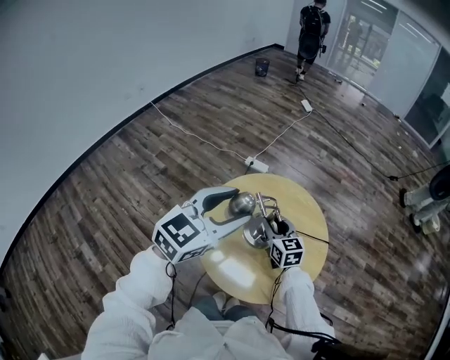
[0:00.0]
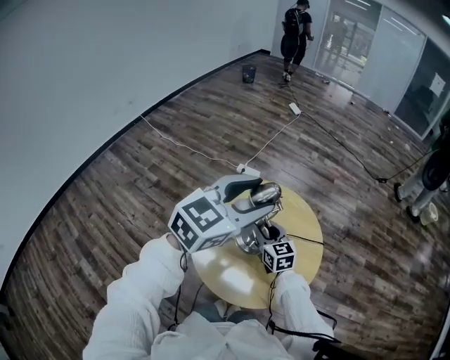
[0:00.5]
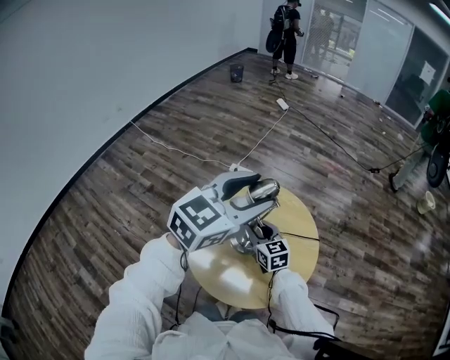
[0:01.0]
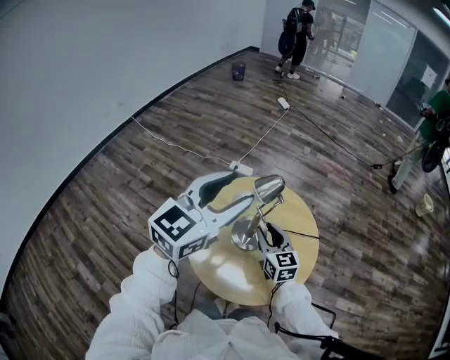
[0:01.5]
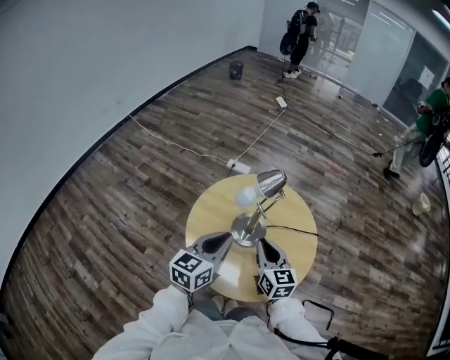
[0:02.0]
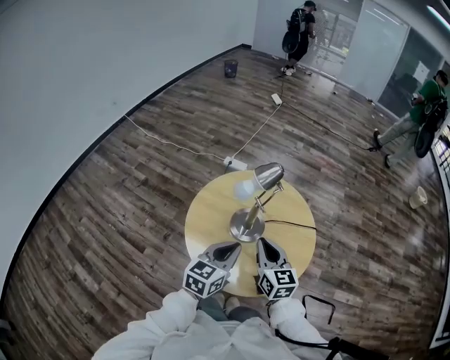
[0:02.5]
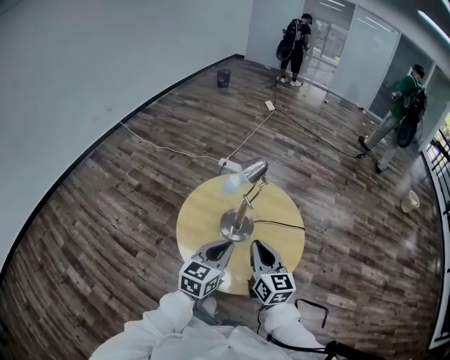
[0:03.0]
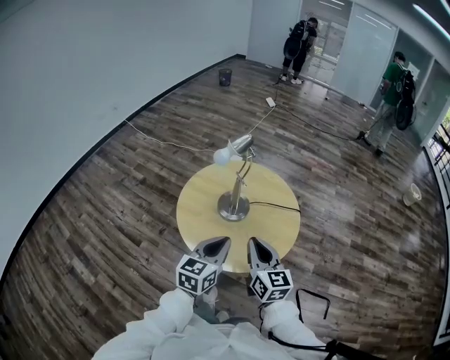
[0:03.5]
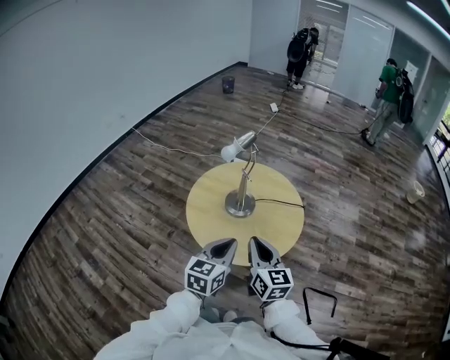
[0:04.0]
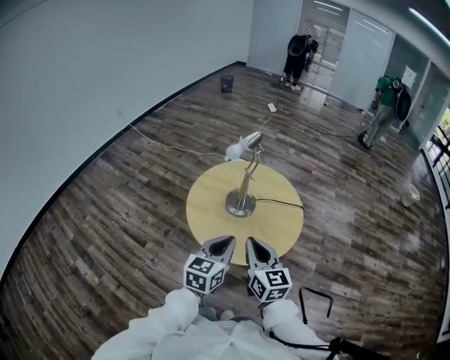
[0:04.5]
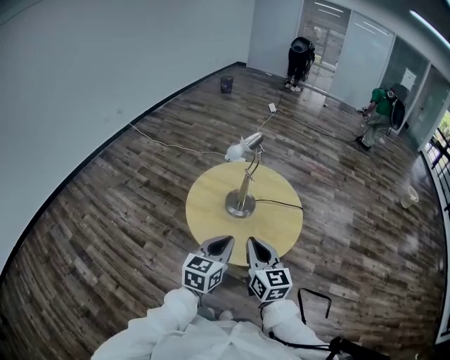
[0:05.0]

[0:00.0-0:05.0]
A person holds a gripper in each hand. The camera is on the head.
0:00.0 to 0:02.5: The right gripper is displaced backward by approximately 10 cm, and closes up, while the left gripper is displaced downward by approximately 15 cm, changes its angle by approximately 20 degrees, and closes up.
0:02.5 to 0:05.0: Both grippers travel together backward, approximately 20 cm.

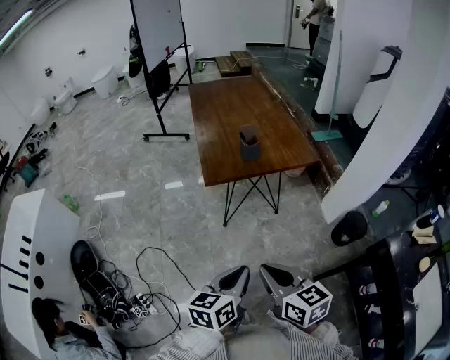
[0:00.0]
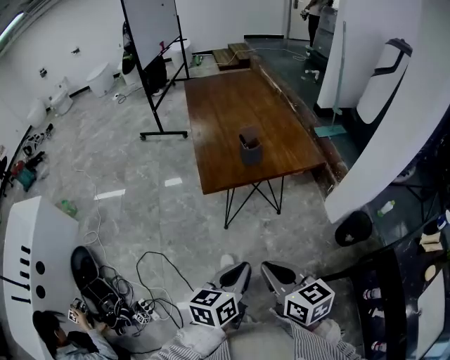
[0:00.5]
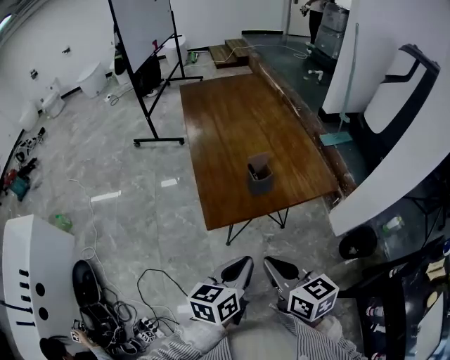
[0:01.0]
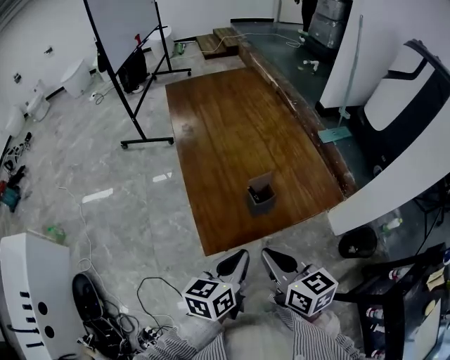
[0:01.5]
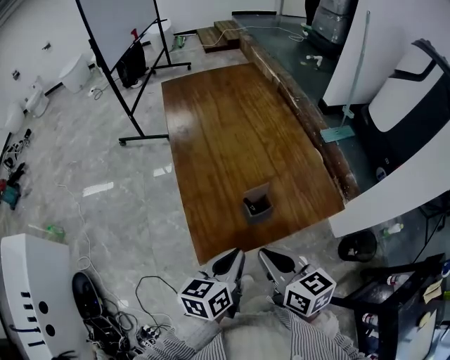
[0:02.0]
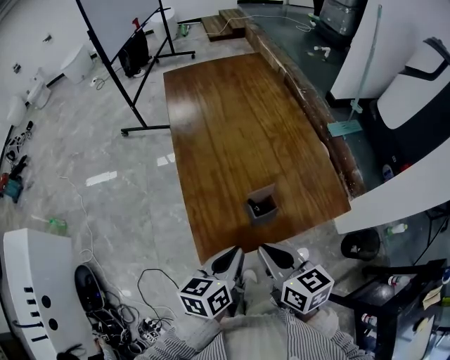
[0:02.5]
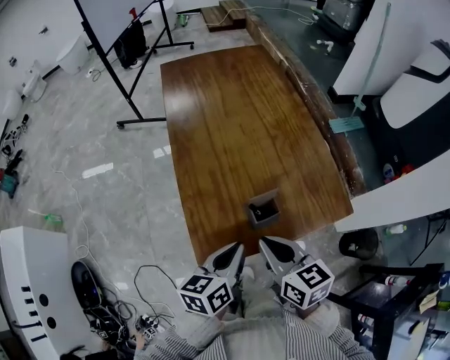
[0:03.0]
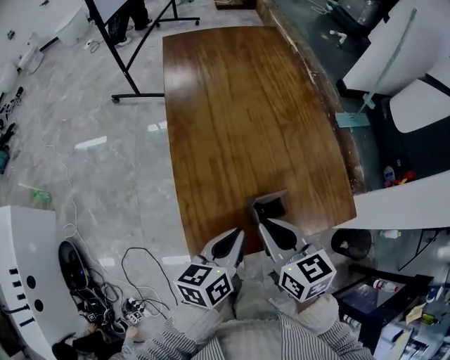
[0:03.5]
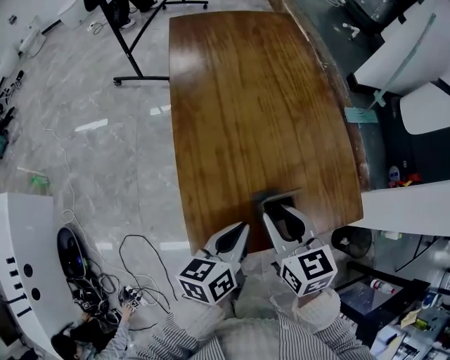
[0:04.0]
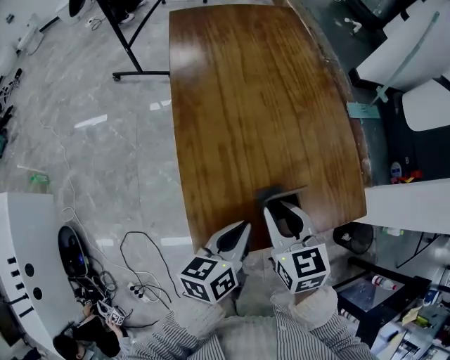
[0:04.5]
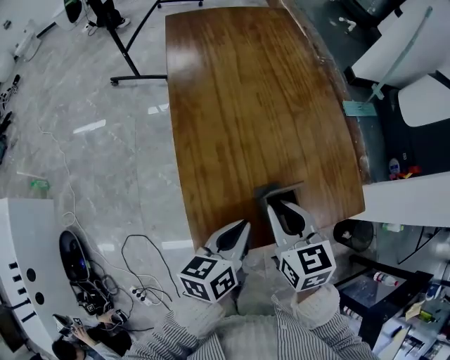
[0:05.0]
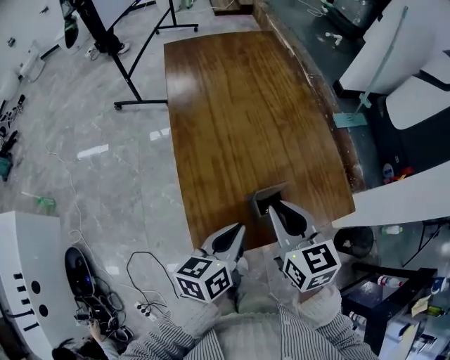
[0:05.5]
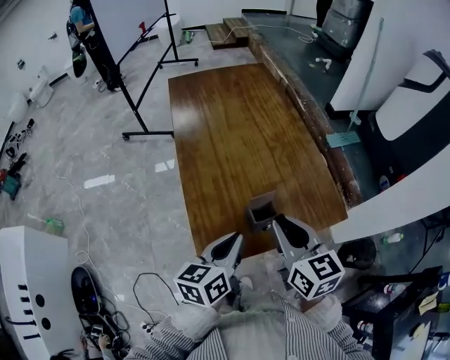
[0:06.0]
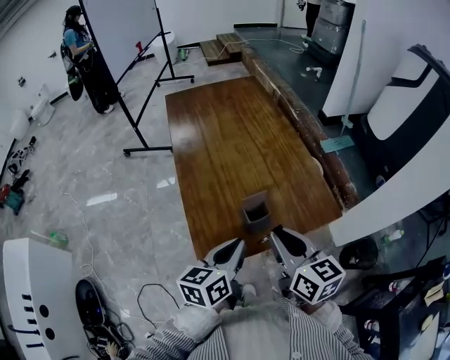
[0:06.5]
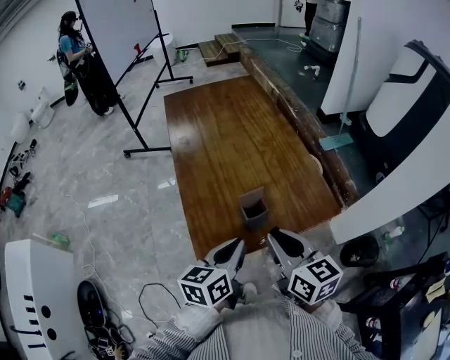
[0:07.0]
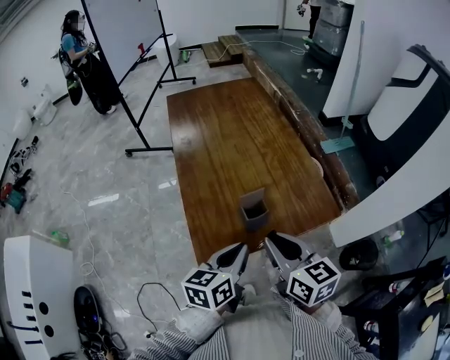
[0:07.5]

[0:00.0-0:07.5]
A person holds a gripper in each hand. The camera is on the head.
0:00.0 to 0:02.0: The pair of grippers is taken forward, approximately 40 cm.
0:02.0 to 0:04.0: The two grippers go approximately 15 cm forward and downward. The right gripper opens its fingers.
0:04.0 to 0:05.5: The right gripper heads upward, covering roughly 5 cm.
0:05.5 to 0:07.5: The grippers both shift backward by roughly 10 cm.

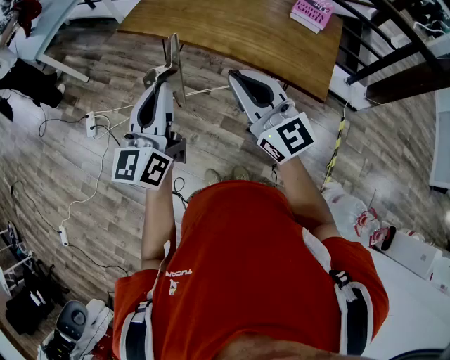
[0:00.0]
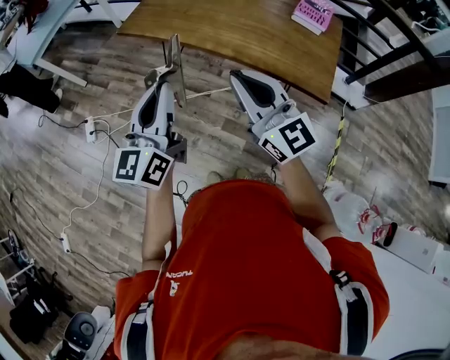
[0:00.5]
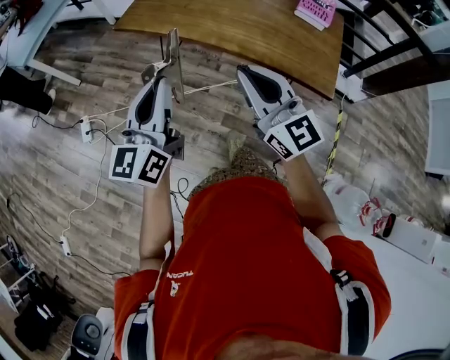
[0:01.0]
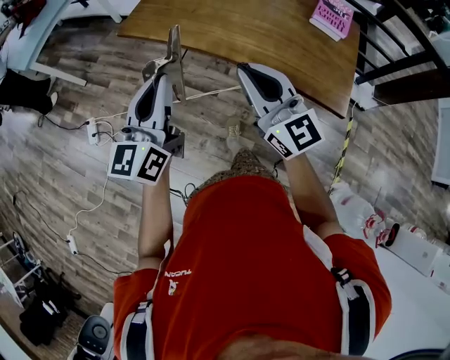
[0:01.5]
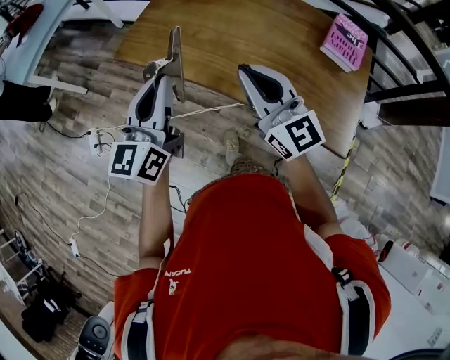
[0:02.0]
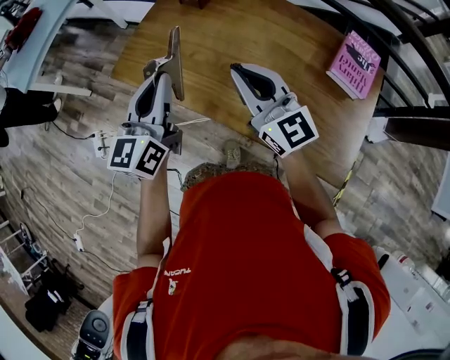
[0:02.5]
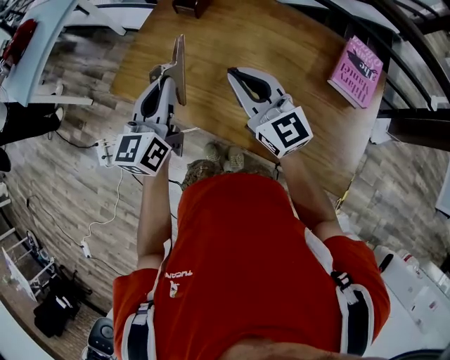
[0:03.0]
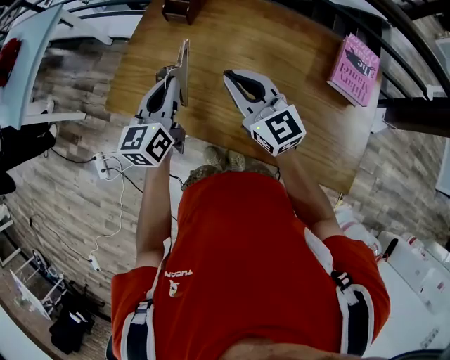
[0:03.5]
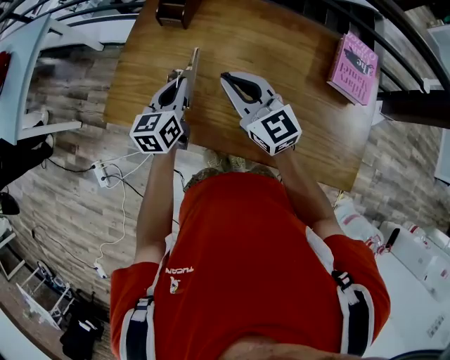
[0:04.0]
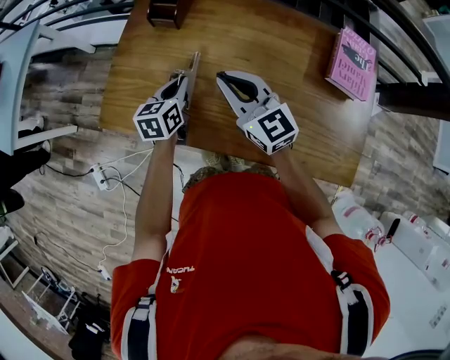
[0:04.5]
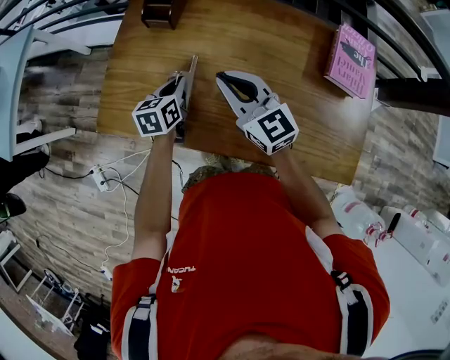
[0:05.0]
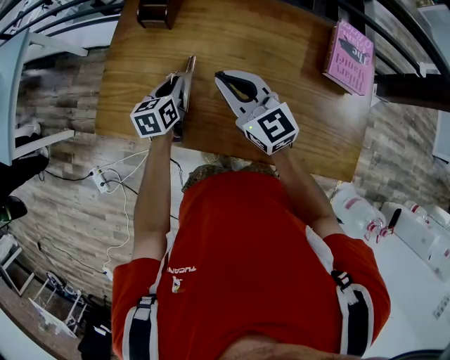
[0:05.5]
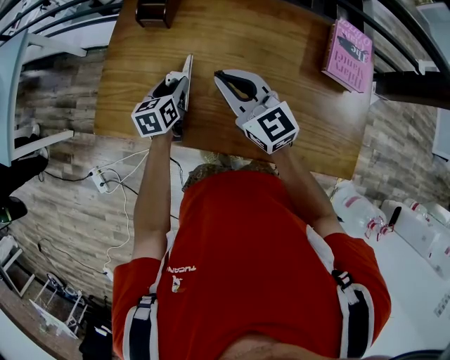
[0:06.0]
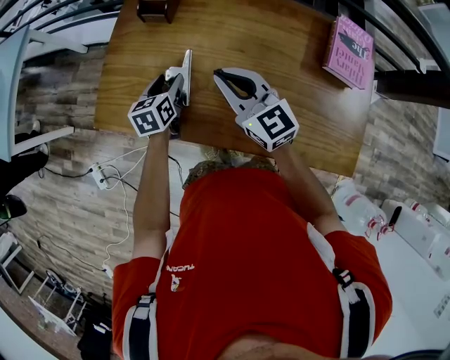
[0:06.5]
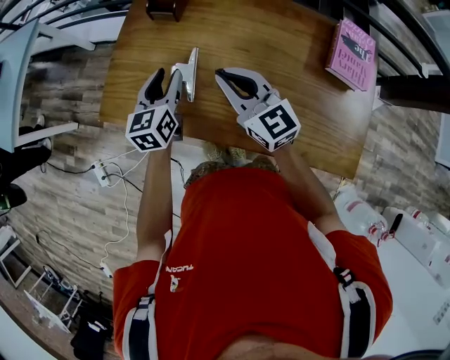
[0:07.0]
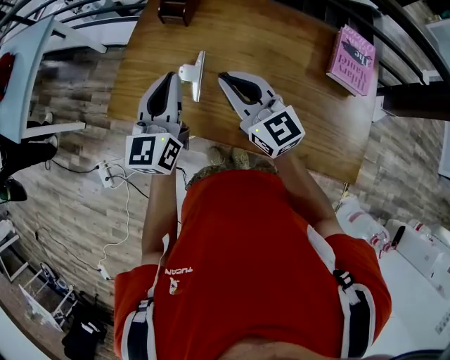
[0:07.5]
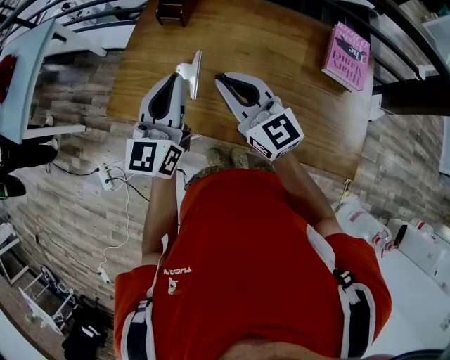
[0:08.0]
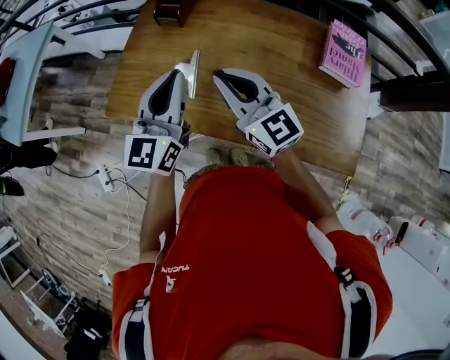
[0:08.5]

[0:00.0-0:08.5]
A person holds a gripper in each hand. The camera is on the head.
0:00.0 to 0:02.0: Both grippers travel together forward, some 25 cm.
0:02.0 to 0:04.0: The left gripper is displaced forward and downward by about 30 cm, and rotates some 30 degrees. The right gripper shifts some 25 cm forward.
0:04.0 to 0:06.5: The left gripper shifts roughly 10 cm downward, and opens up.
0:06.5 to 0:08.5: The right gripper heads upward and backward, covering about 10 cm. The left gripper moves upward and backward, some 25 cm, tips its fingers upward by some 40 degrees, and closes its fingers.

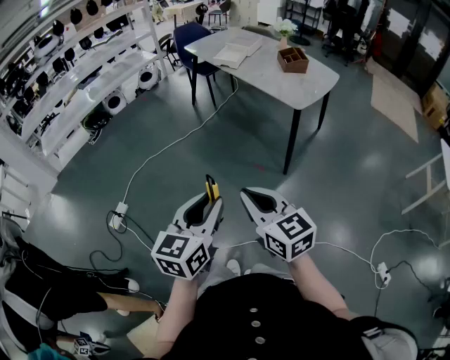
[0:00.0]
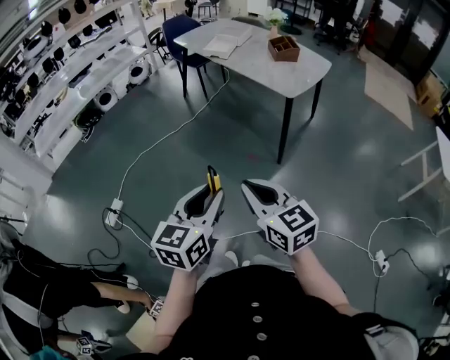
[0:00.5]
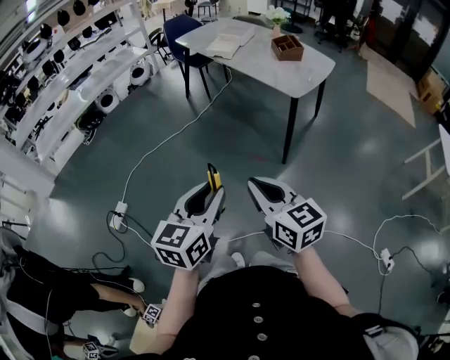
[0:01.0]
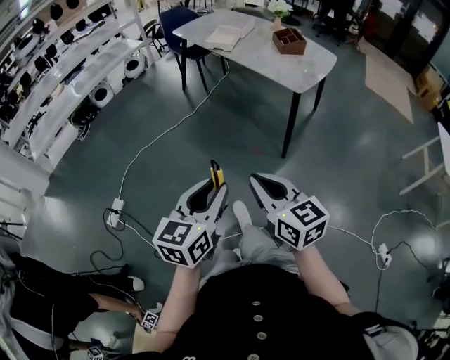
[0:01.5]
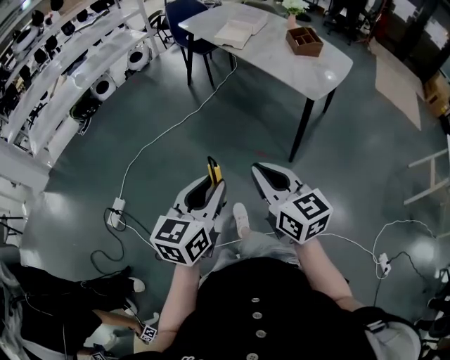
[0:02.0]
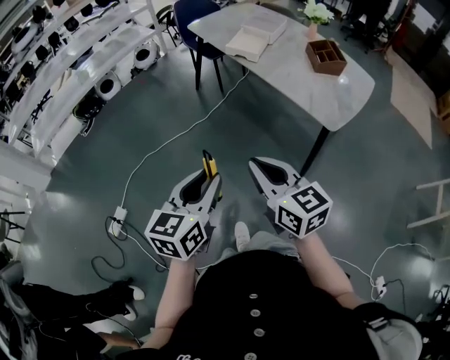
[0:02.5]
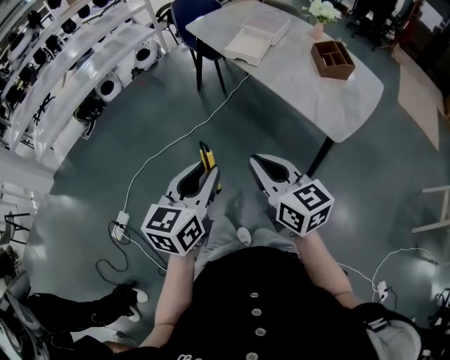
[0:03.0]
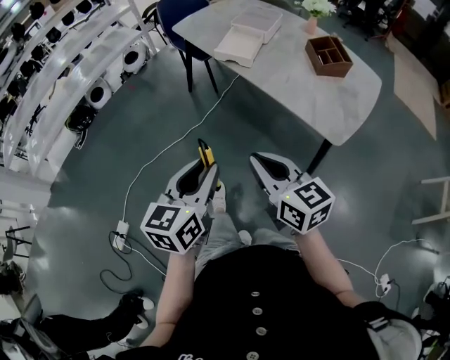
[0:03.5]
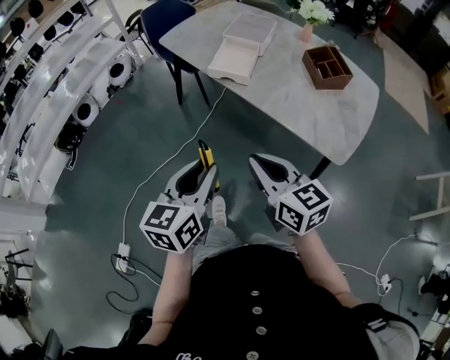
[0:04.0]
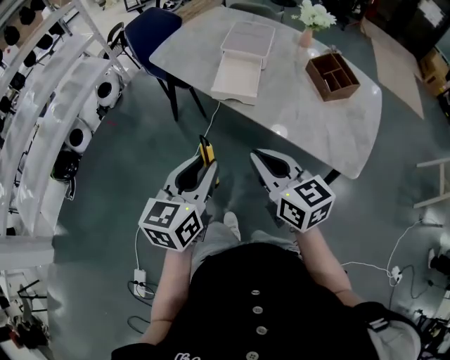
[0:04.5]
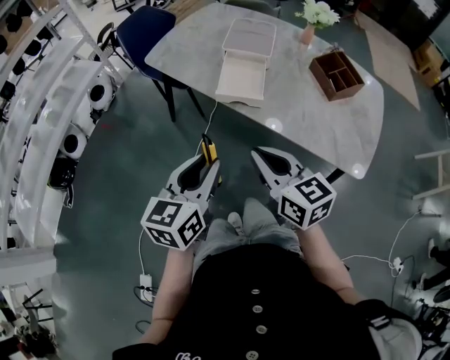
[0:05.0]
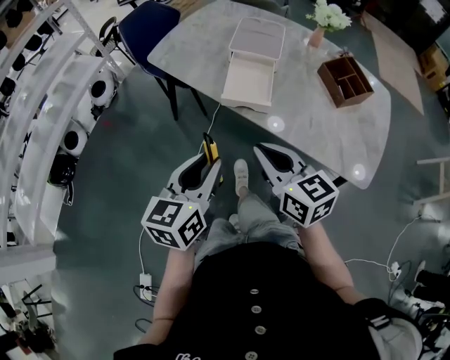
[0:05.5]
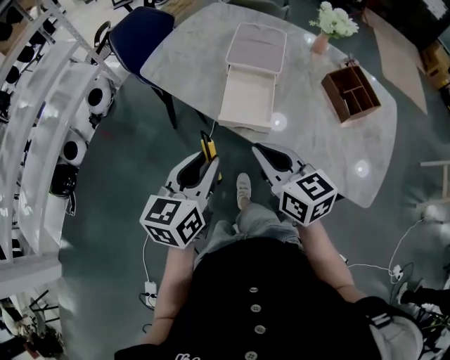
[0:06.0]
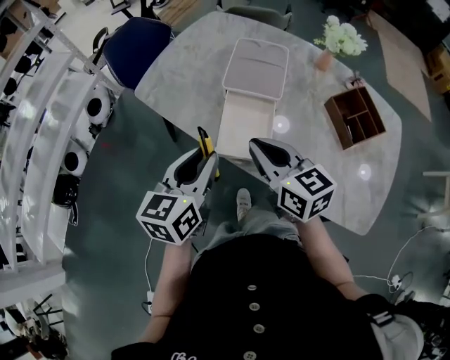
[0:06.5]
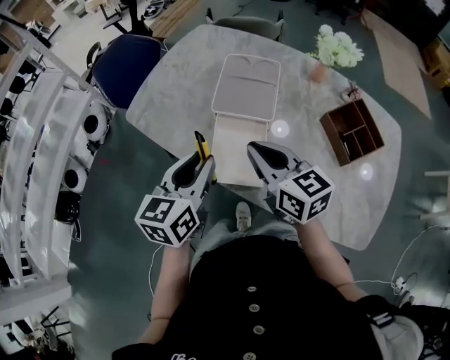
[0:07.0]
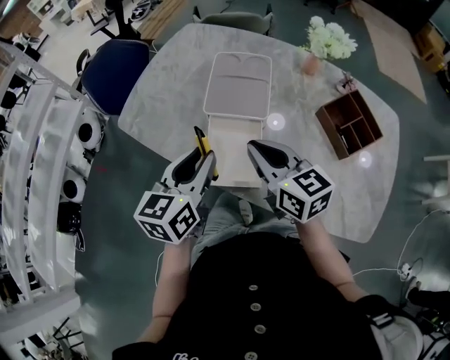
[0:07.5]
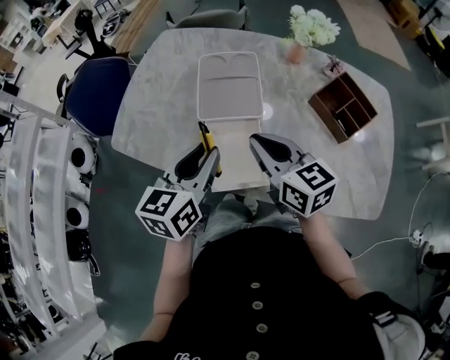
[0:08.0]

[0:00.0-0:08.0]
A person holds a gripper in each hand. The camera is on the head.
0:00.0 to 0:02.0: The grippers both shift forward by about 15 cm.
0:02.0 to 0:04.0: Both grippers are carried forward, about 40 cm.
0:04.0 to 0:06.0: Both grippers move forward, about 30 cm.
0:06.0 to 0:08.0: Both grippers move forward, some 25 cm.
